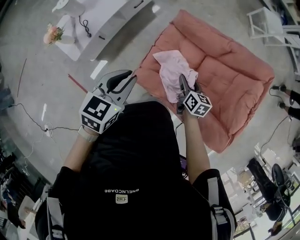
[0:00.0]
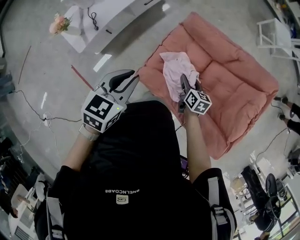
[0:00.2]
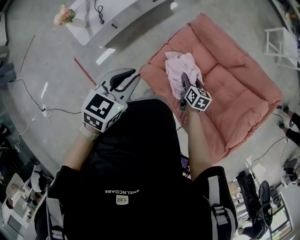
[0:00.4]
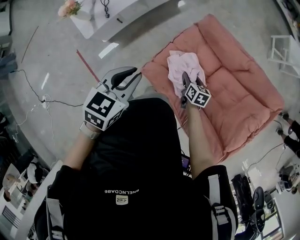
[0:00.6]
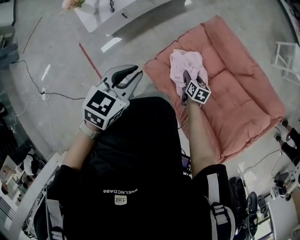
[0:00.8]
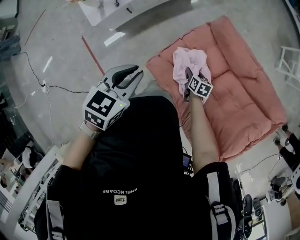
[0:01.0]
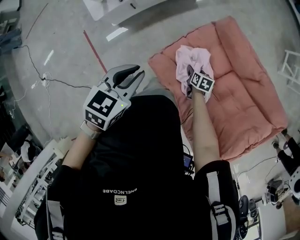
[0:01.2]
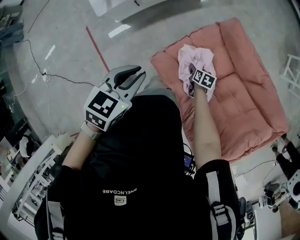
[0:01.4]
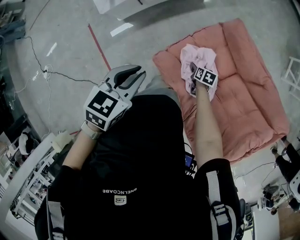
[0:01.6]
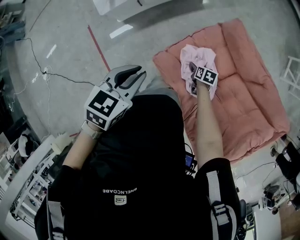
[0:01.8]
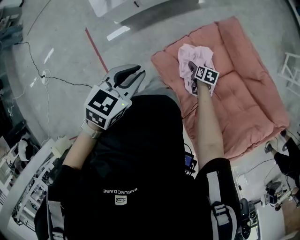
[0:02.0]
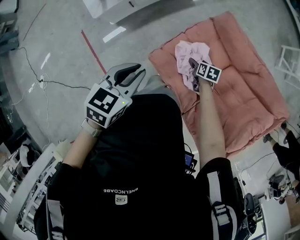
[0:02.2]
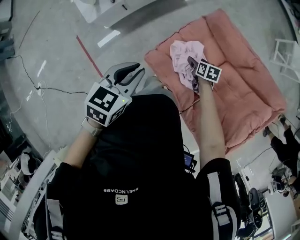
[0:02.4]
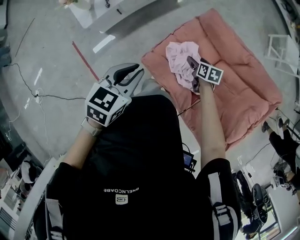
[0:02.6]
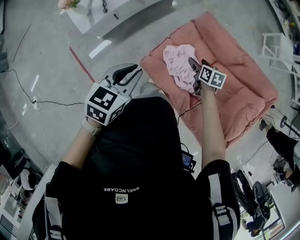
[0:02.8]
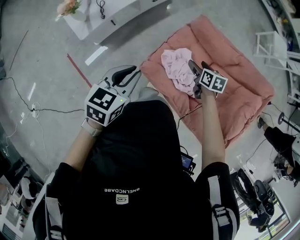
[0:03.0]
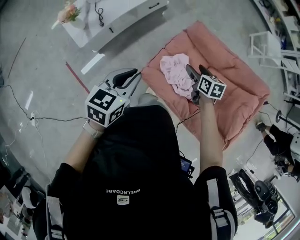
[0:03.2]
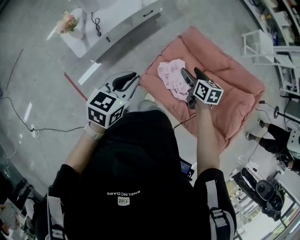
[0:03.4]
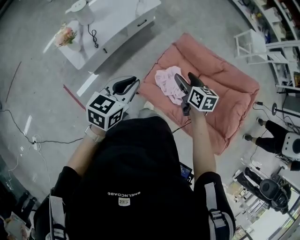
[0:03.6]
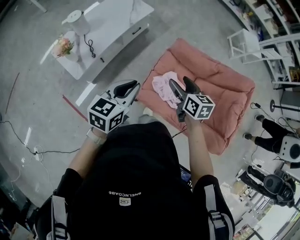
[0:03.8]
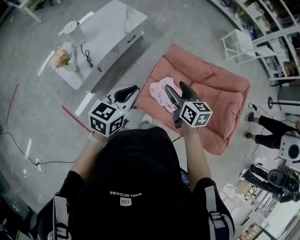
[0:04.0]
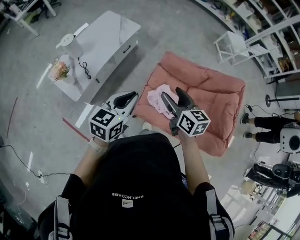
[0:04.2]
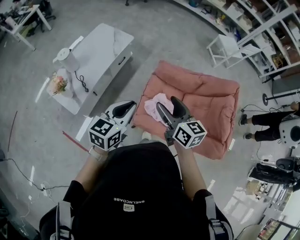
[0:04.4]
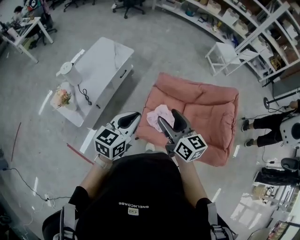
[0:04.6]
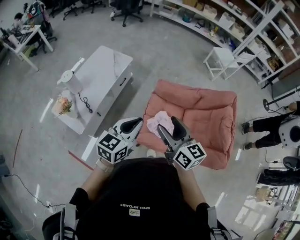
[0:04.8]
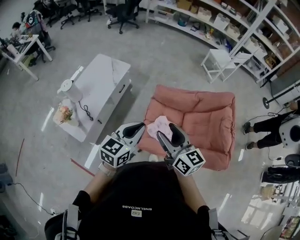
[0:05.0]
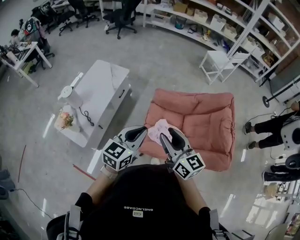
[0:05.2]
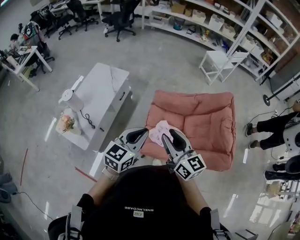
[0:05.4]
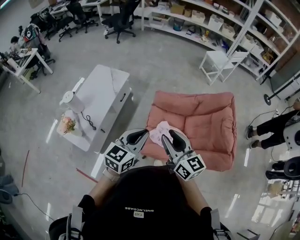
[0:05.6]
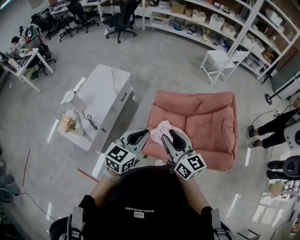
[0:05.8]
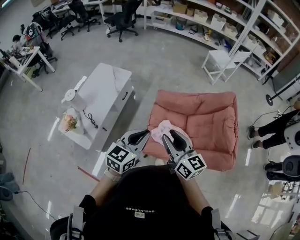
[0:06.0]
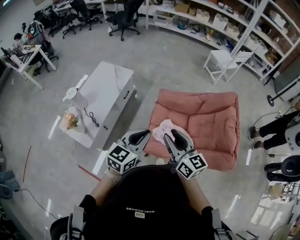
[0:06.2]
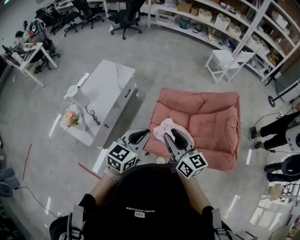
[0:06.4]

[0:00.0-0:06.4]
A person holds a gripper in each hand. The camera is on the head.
0.0 to 1.6 s: The left gripper goes about 10 cm downward, and turns by some 20 degrees, while the right gripper travels downward by approximately 25 cm, and turns by about 40 degrees.
1.6 to 3.2 s: The left gripper moves upward, approximately 10 cm; the right gripper shifts some 30 cm upward, and rotates some 20 degrees.
3.2 to 4.8 s: The left gripper shifts about 15 cm upward, and swivels roughly 30 degrees, while the right gripper heads upward, covering about 30 cm, and tips its fingers upward by roughly 40 degrees.
4.8 to 6.4 s: The right gripper closes its fingers.

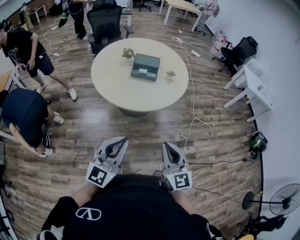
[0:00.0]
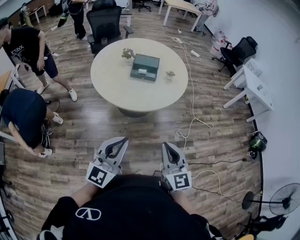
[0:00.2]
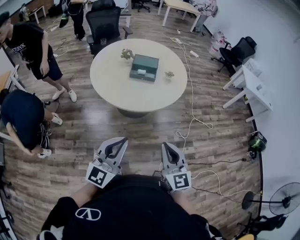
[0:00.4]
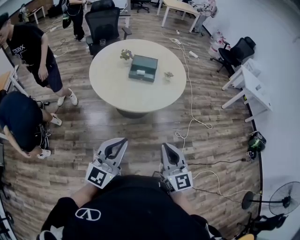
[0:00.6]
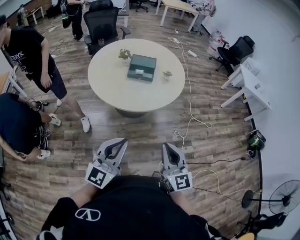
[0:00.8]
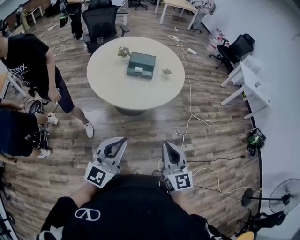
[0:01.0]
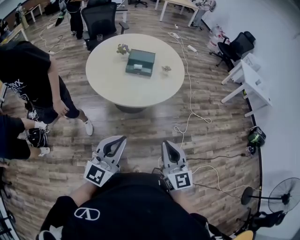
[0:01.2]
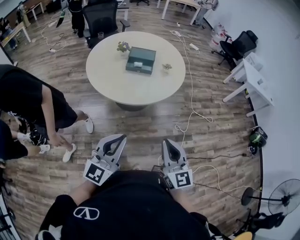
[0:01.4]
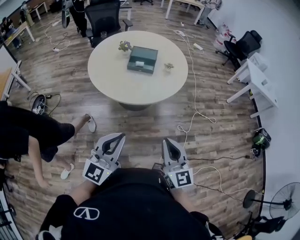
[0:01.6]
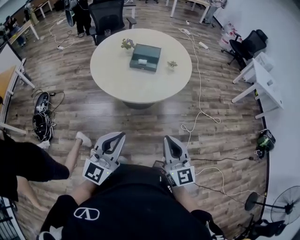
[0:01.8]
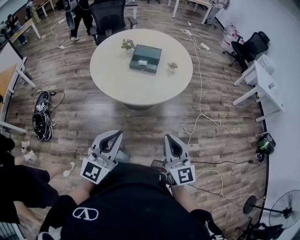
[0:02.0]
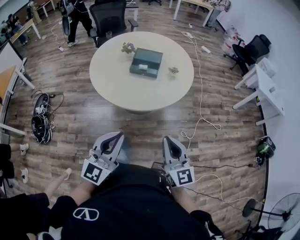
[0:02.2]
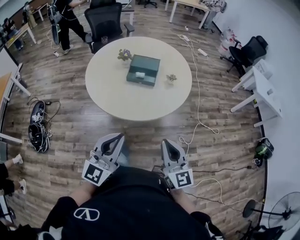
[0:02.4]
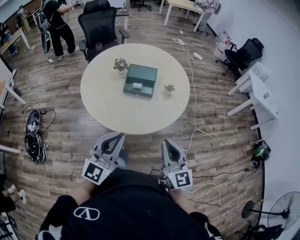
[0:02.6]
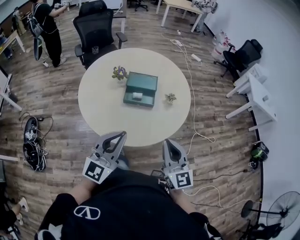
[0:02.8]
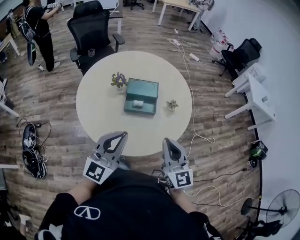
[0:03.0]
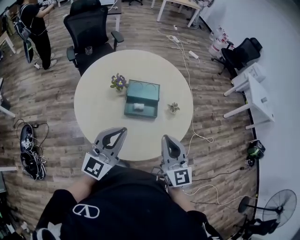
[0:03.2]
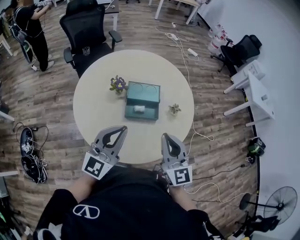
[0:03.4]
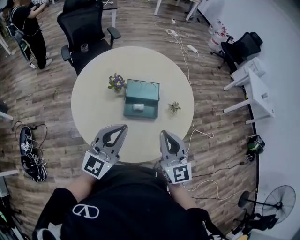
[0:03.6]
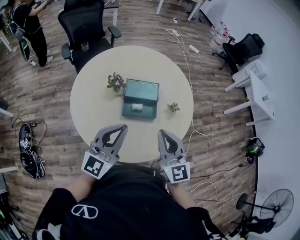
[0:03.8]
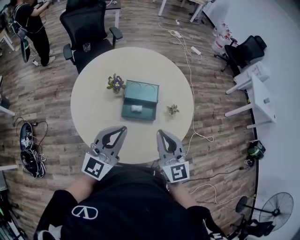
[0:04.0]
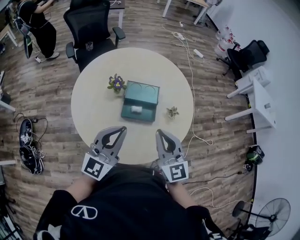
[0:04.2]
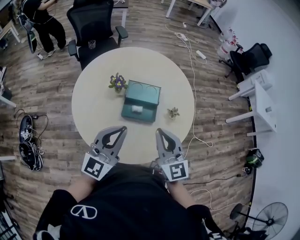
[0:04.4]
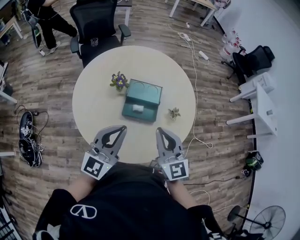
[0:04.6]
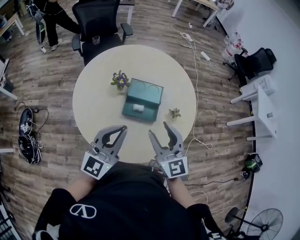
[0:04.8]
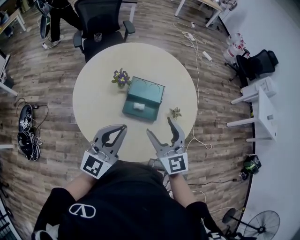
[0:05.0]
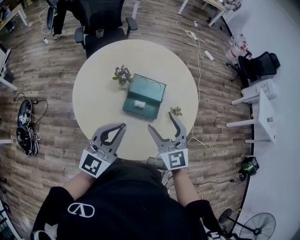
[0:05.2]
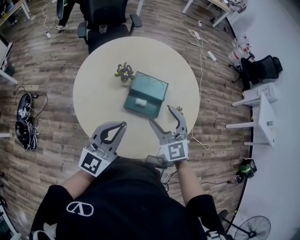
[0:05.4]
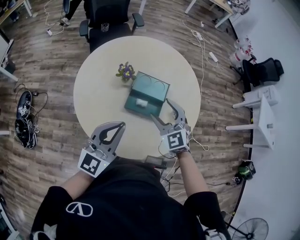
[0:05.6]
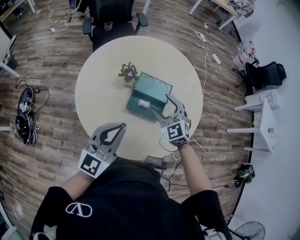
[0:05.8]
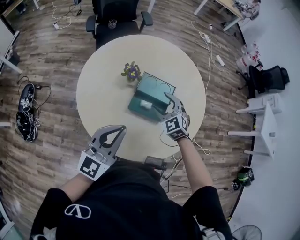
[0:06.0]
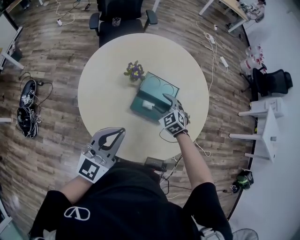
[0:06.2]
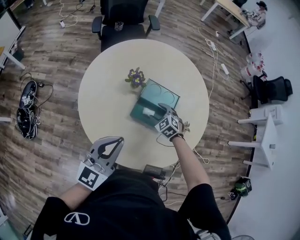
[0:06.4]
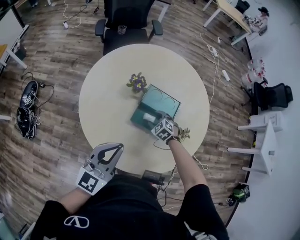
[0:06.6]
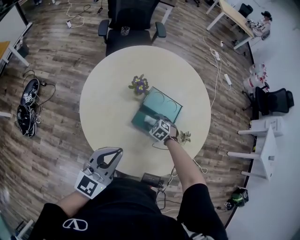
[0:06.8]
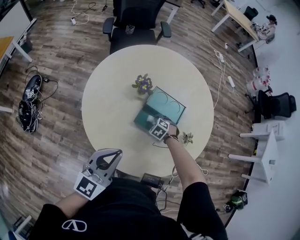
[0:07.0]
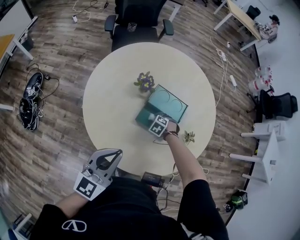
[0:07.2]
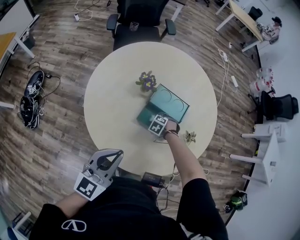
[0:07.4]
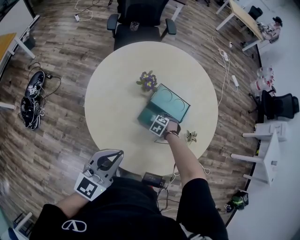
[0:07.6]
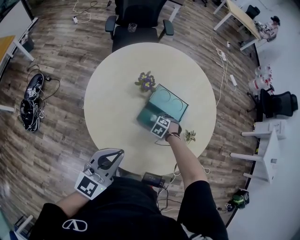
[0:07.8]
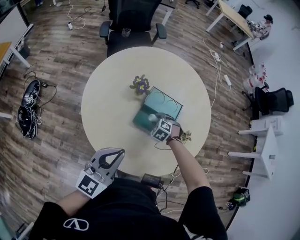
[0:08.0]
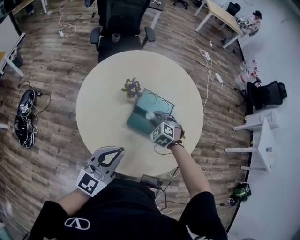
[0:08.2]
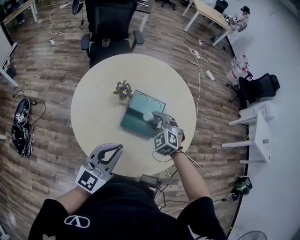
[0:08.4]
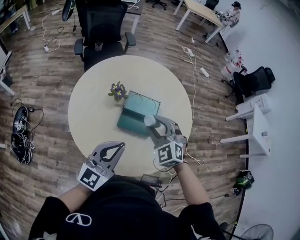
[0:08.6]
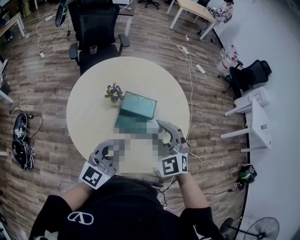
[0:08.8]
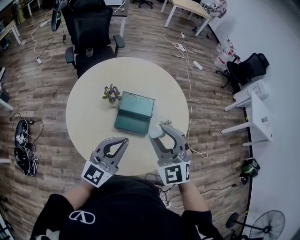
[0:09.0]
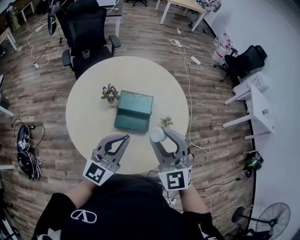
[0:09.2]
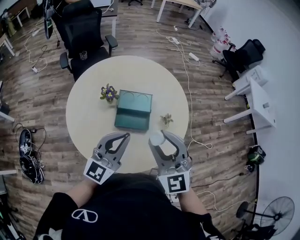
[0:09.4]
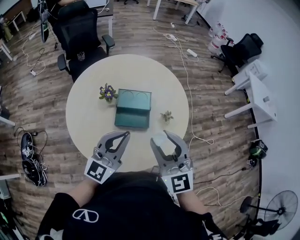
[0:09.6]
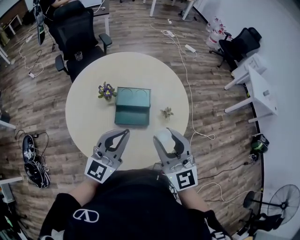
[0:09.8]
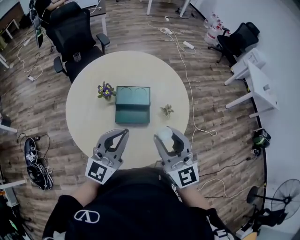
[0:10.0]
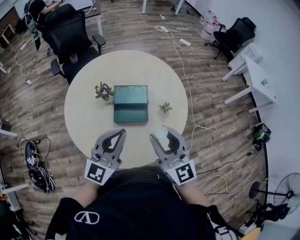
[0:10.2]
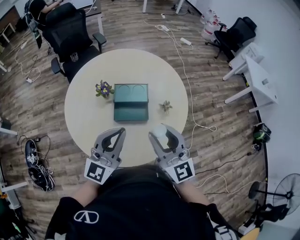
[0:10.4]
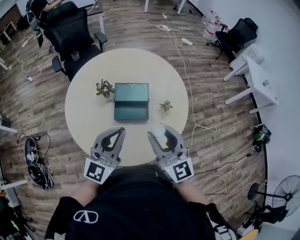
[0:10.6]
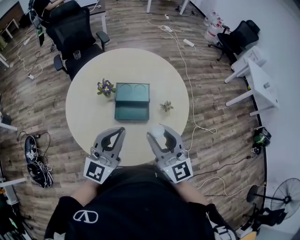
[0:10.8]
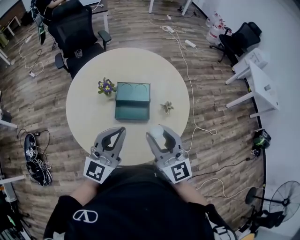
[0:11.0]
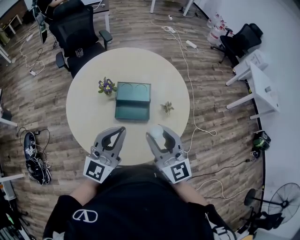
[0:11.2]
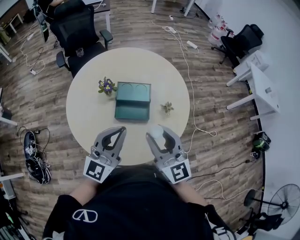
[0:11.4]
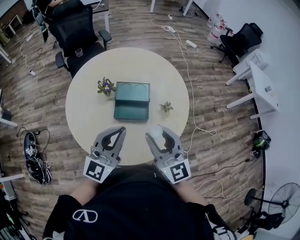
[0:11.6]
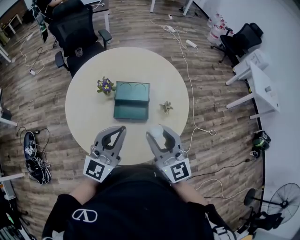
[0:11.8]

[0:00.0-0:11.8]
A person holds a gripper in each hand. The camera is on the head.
0.0 to 1.4 s: The grippers stay close to where they were, moving slightly.
1.4 to 3.0 s: Both grippers are carried forward, about 40 cm.
3.0 to 4.4 s: Both grippers travel together forward, some 15 cm.
4.4 to 6.0 s: The right gripper travels forward and downward by about 25 cm, angles its fingers downward, by some 30 degrees, and opens.
6.0 to 7.4 s: The right gripper moves downward, roughly 30 cm, points its fingers approximately 50 degrees further downward, and closes up. Meanwhile the left gripper travels downward by roughly 5 cm.
7.4 to 8.8 s: The left gripper ends up about 10 cm from where it was. Meanwhile the right gripper is displaced upward by about 50 cm, and points its fingers about 60 degrees further upward.
8.8 to 10.4 s: The right gripper is displaced backward and to the right by some 10 cm, and changes its angle by about 50 degrees.
10.4 to 11.8 s: Both grippers stay about where they are.

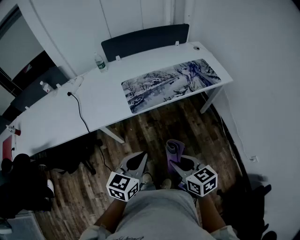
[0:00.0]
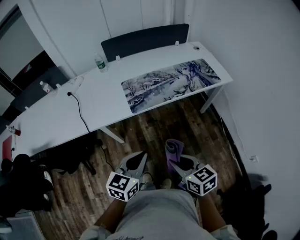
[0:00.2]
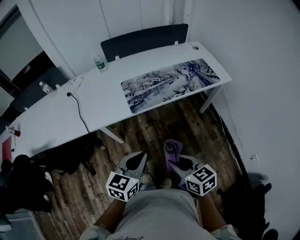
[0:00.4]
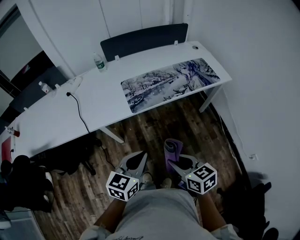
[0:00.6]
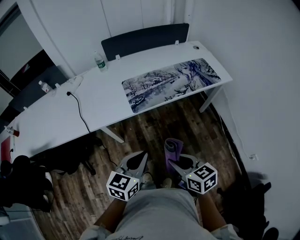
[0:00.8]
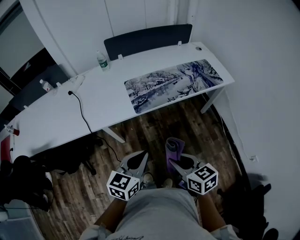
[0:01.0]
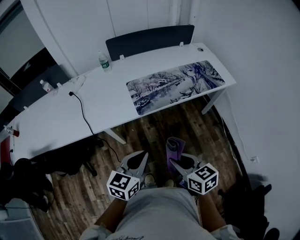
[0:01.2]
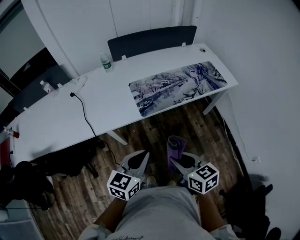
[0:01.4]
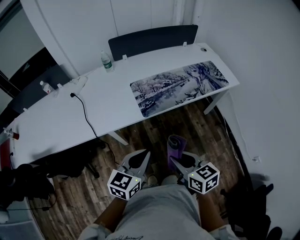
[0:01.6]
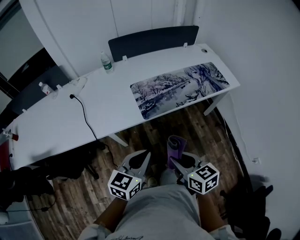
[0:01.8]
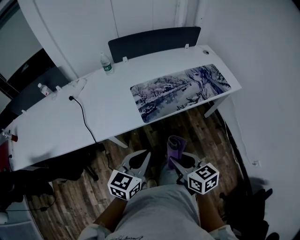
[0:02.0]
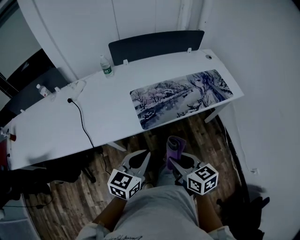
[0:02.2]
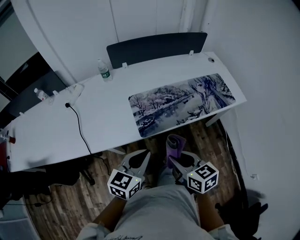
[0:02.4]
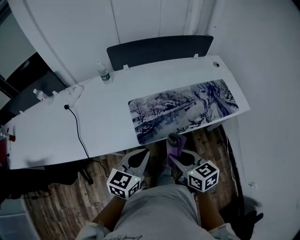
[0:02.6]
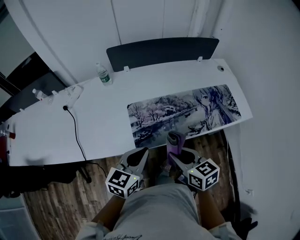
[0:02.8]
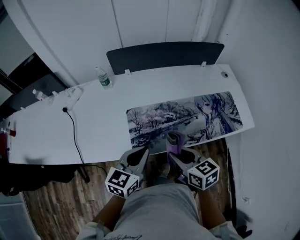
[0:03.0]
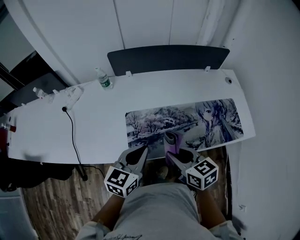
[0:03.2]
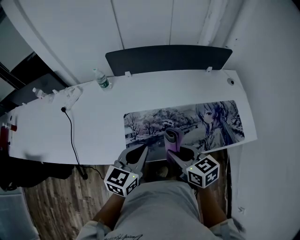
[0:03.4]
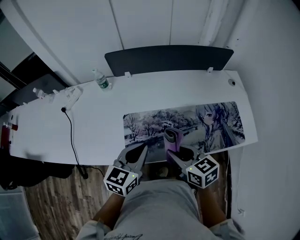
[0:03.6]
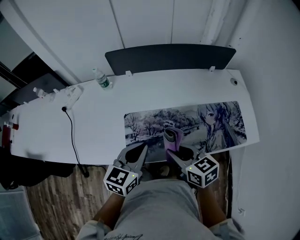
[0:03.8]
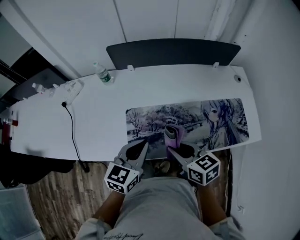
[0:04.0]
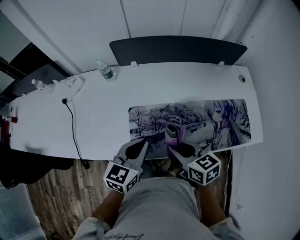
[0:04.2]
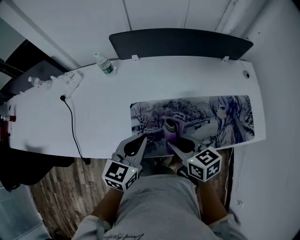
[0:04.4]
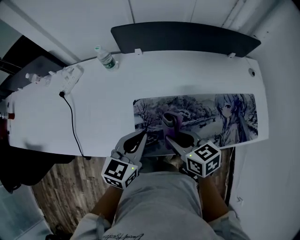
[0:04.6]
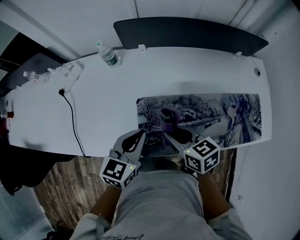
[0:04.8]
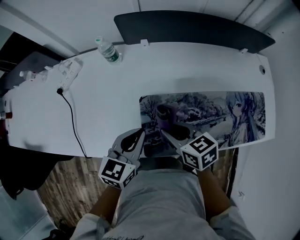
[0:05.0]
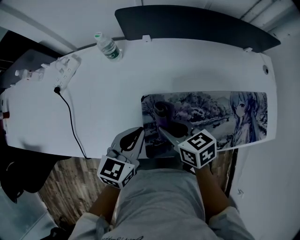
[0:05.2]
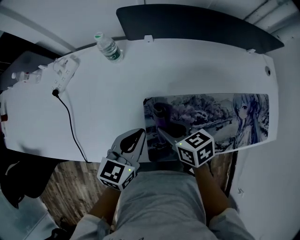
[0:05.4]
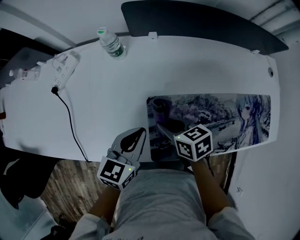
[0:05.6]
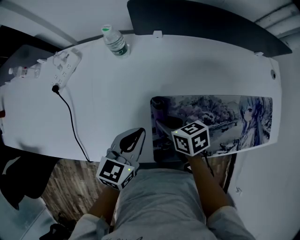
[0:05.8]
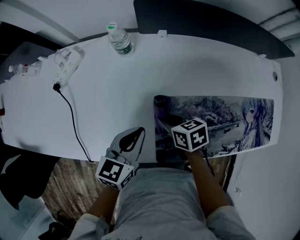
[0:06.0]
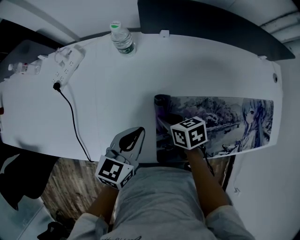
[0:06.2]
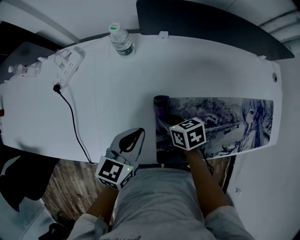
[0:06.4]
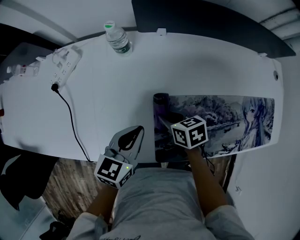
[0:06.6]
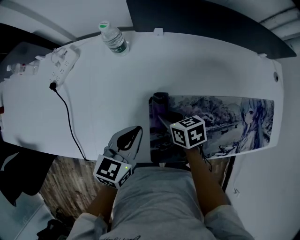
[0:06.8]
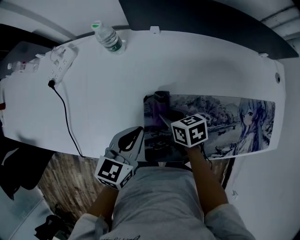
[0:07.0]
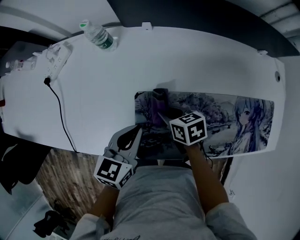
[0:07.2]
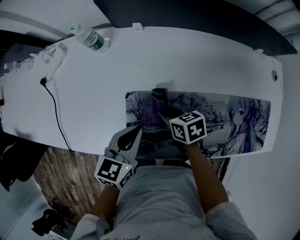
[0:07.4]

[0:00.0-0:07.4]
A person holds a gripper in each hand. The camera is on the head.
0.0 to 1.4 s: The two grippers go approximately 5 cm to the left.
1.4 to 3.0 s: The grippers both shift forward by roughly 30 cm.
3.0 to 4.4 s: The two grippers go some 10 cm forward.
4.4 to 6.0 s: The left gripper heads to the left, forward and downward, covering approximately 20 cm; the right gripper goes roughly 25 cm downward, forward and to the left, and changes its angle by roughly 20 degrees.
6.0 to 7.4 s: The two grippers go about 10 cm to the right.
